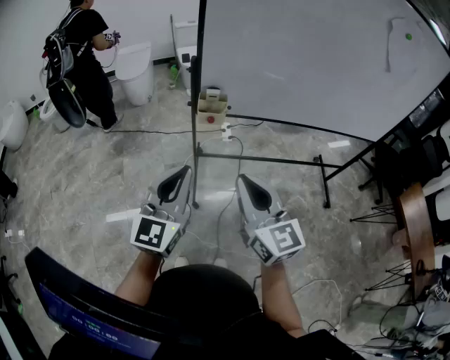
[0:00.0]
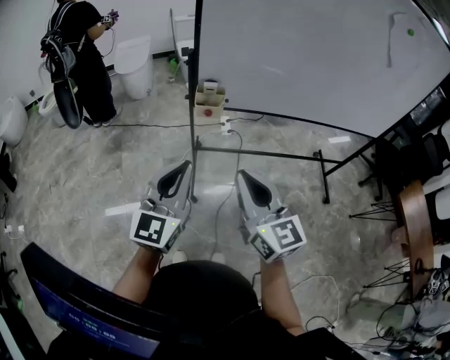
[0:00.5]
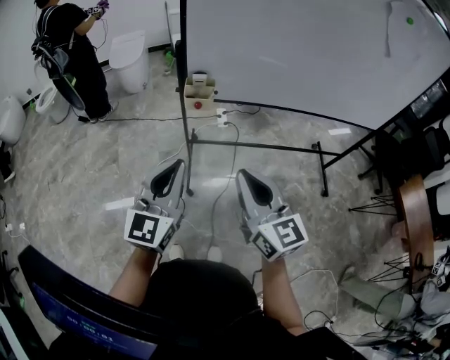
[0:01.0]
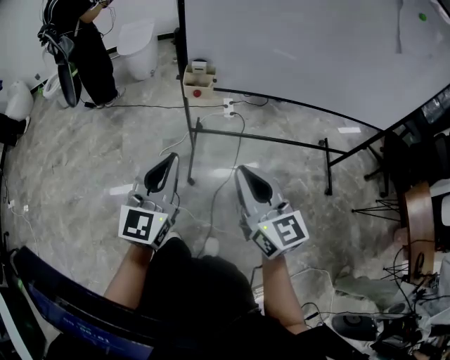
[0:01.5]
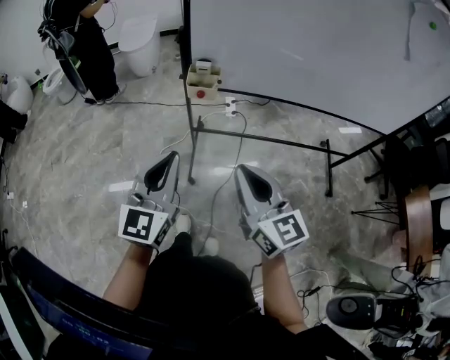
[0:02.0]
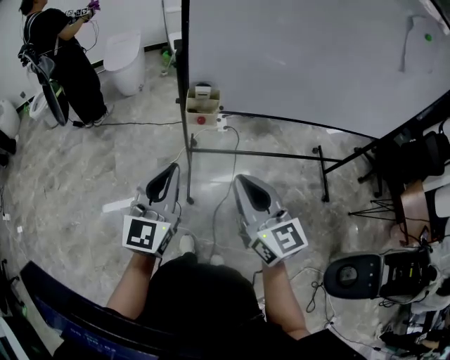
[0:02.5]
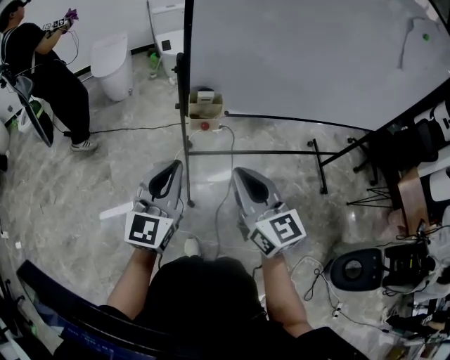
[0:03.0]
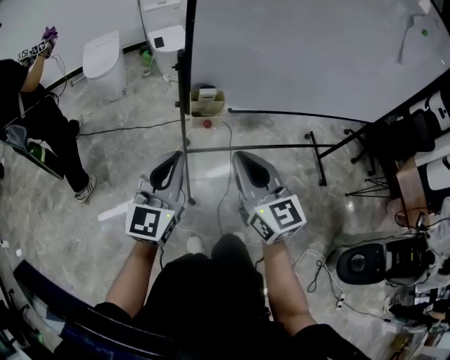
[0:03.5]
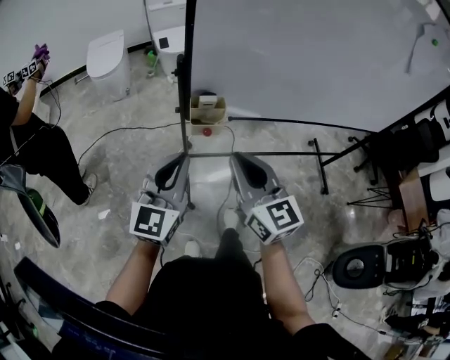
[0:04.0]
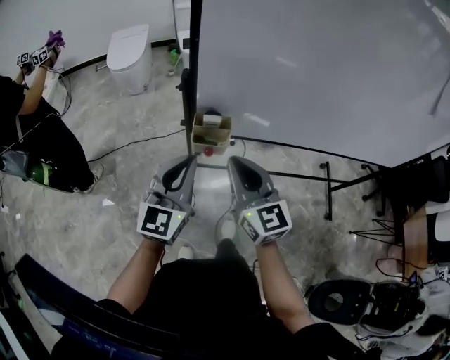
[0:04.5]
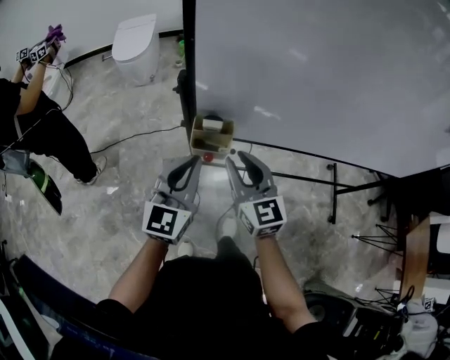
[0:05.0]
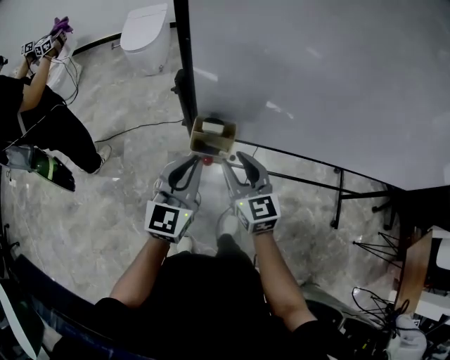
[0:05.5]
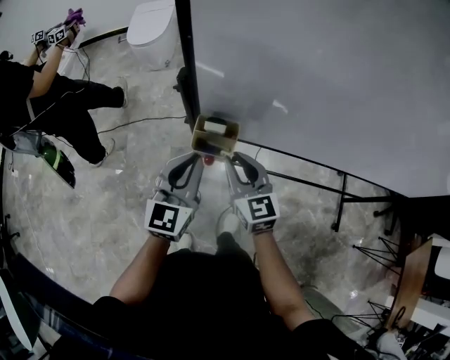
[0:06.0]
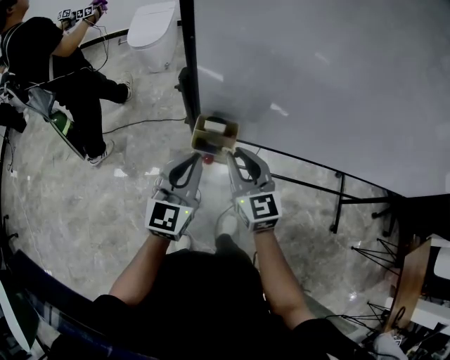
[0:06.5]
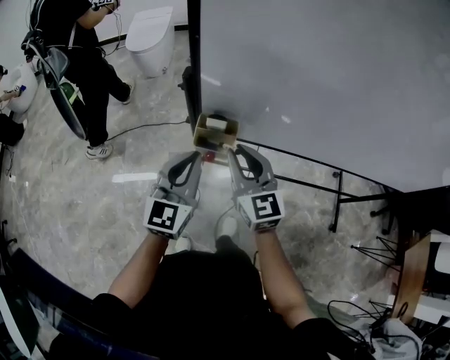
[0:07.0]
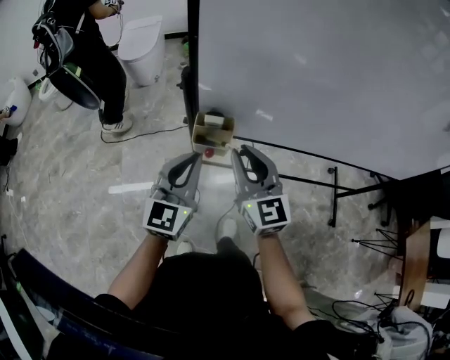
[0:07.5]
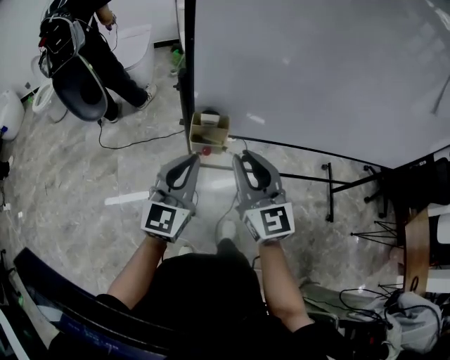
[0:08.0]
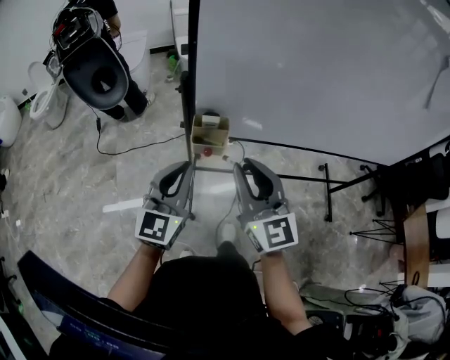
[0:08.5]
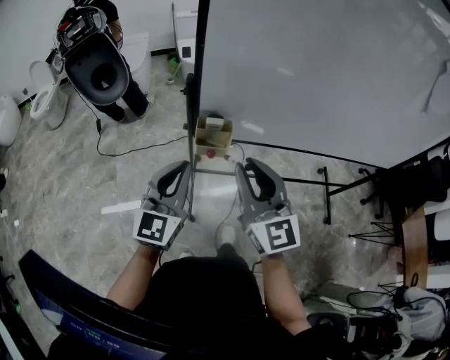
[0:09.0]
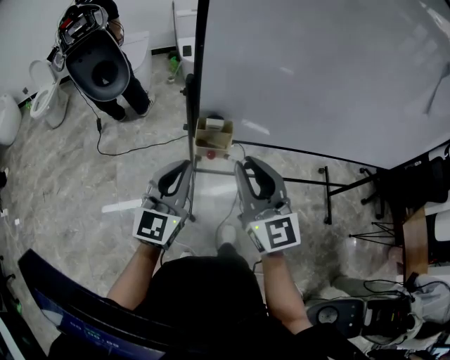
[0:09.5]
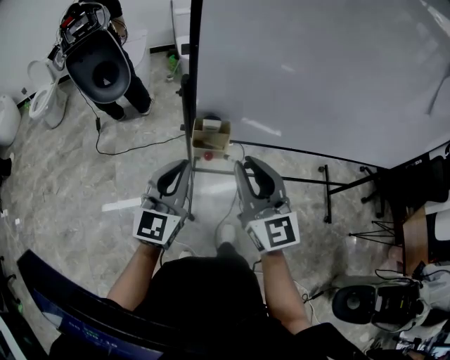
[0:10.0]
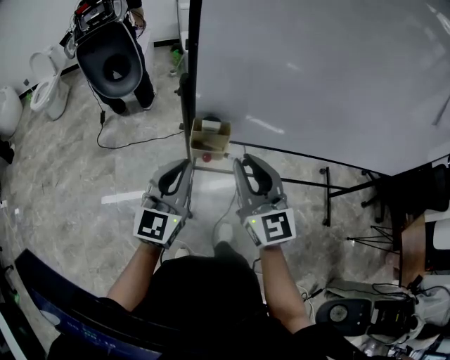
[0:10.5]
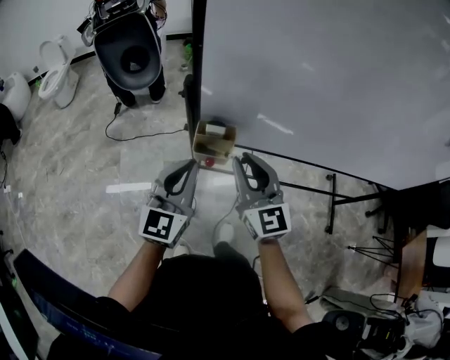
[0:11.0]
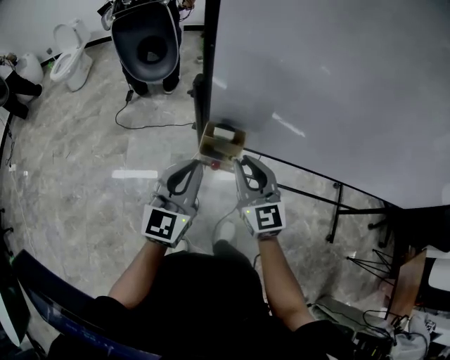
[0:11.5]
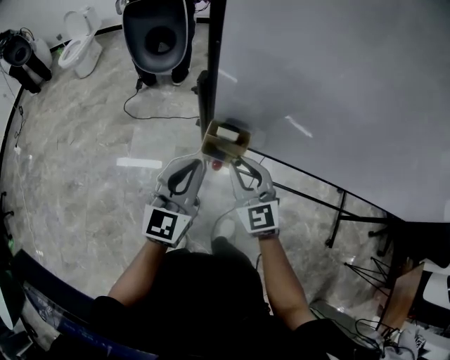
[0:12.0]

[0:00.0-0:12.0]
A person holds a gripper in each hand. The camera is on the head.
0:00.0 to 0:02.0: Both grippers travel together to the right, roughly 5 cm.
0:02.0 to 0:04.0: Both grippers travel together forward and to the left, about 20 cm.
0:04.0 to 0:06.0: The left gripper travels forward, to the right and downward by about 15 cm. The right gripper heads forward and downward, covering roughly 20 cm.
0:06.0 to 0:08.0: The right gripper heads upward and backward, covering roughly 15 cm; the left gripper moves backward and upward, some 10 cm.
0:08.0 to 0:10.0: The grippers move only a little.
0:10.0 to 0:12.0: The right gripper is displaced downward and forward by approximately 20 cm, and swivels roughly 20 degrees, while the left gripper travels forward and downward by about 10 cm.

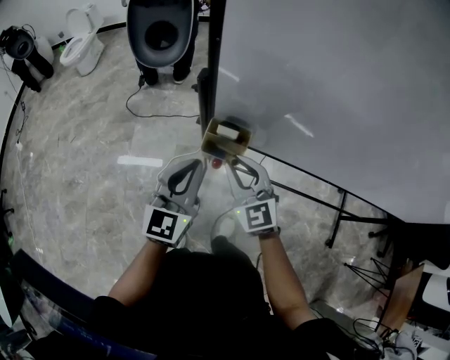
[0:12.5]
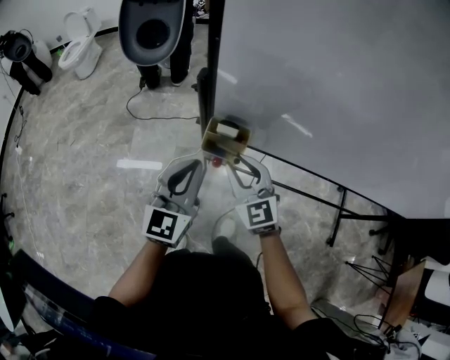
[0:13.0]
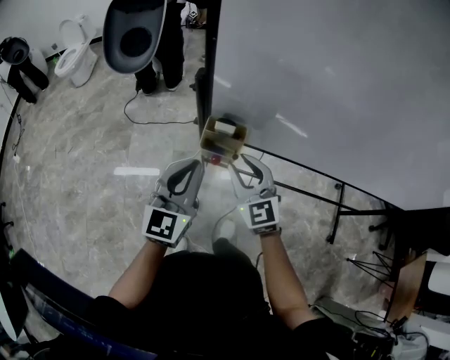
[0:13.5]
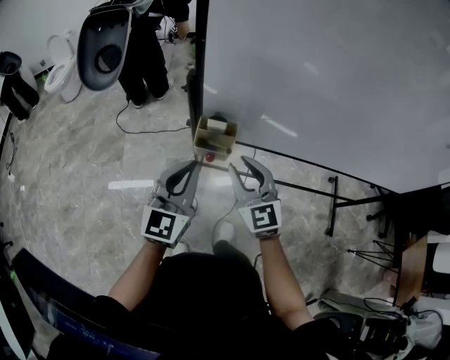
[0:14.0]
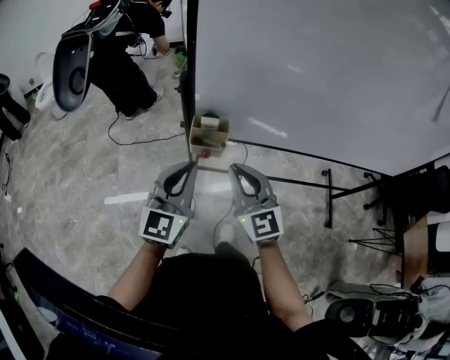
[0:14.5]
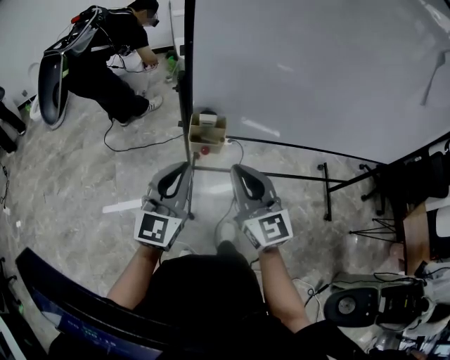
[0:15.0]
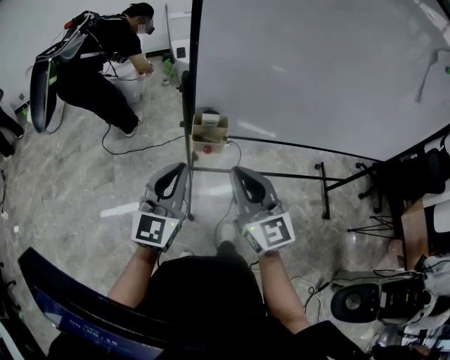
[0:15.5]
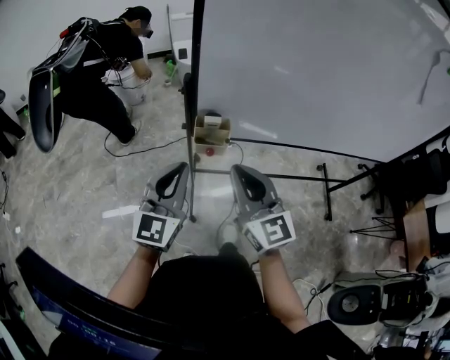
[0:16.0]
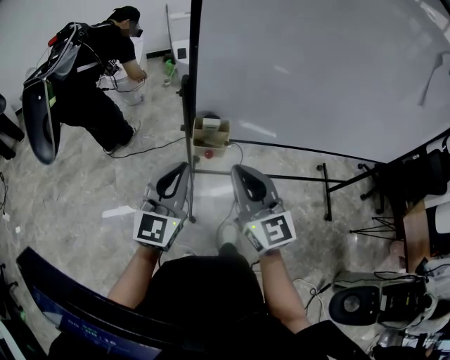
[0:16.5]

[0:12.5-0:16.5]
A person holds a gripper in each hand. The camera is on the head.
0:12.5 to 0:14.5: The right gripper heads backward and upward, covering some 10 cm. The left gripper moves backward, some 5 cm.
0:14.5 to 0:16.5: The right gripper heads upward, covering approximately 5 cm.

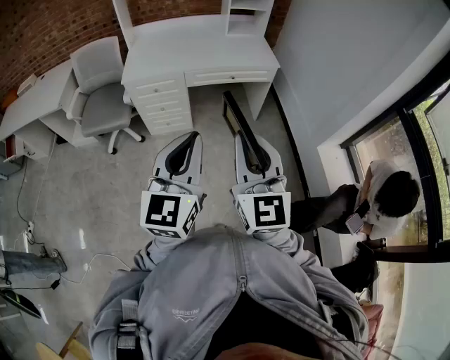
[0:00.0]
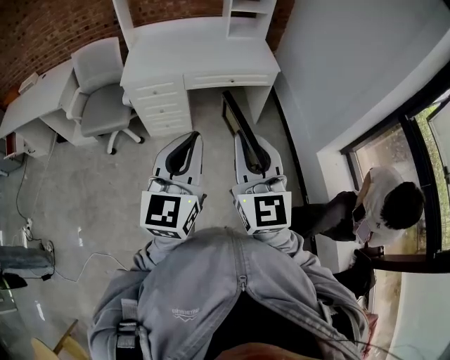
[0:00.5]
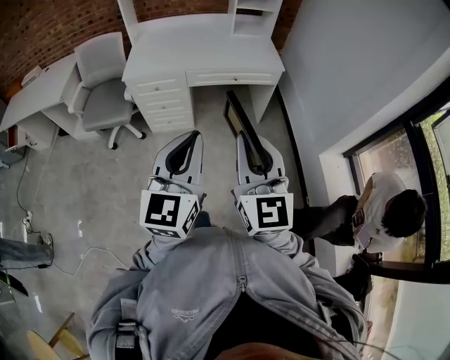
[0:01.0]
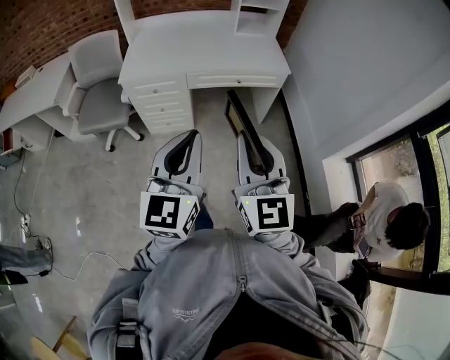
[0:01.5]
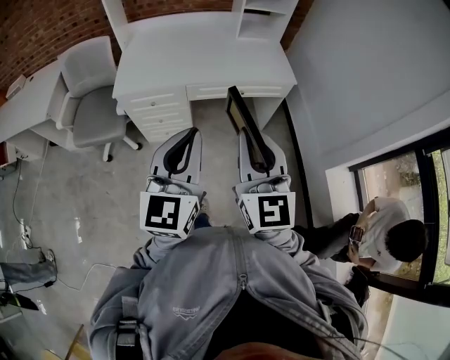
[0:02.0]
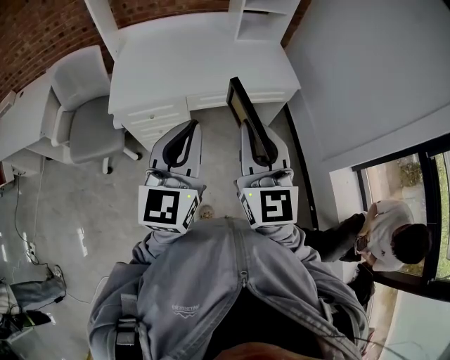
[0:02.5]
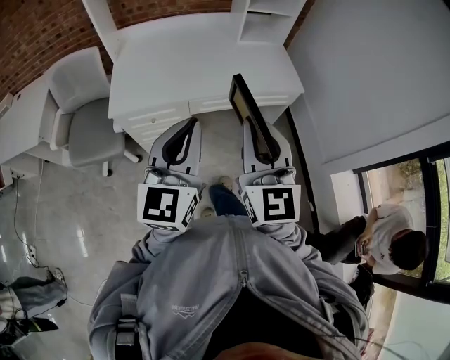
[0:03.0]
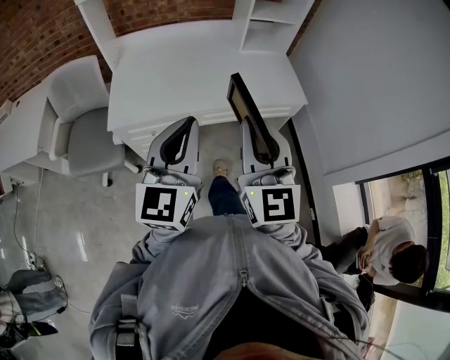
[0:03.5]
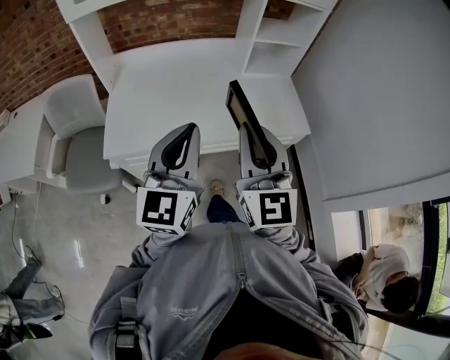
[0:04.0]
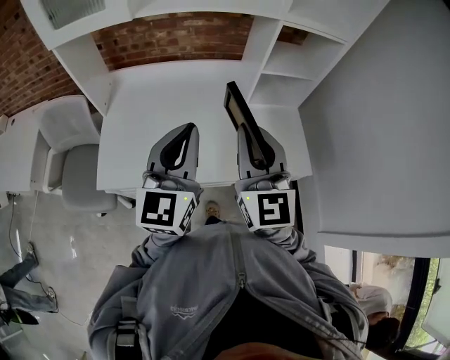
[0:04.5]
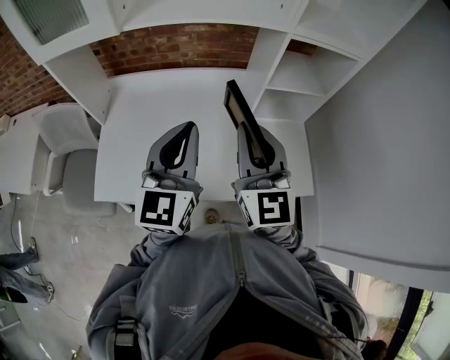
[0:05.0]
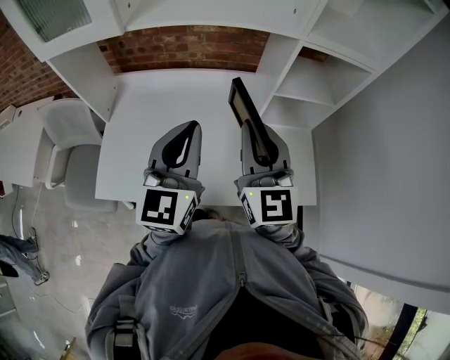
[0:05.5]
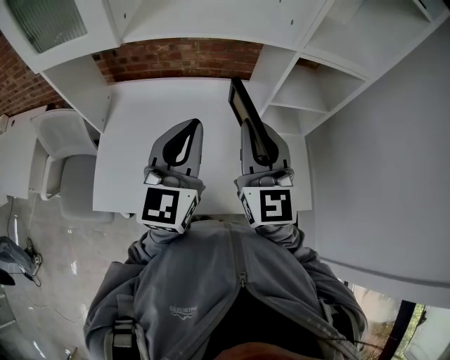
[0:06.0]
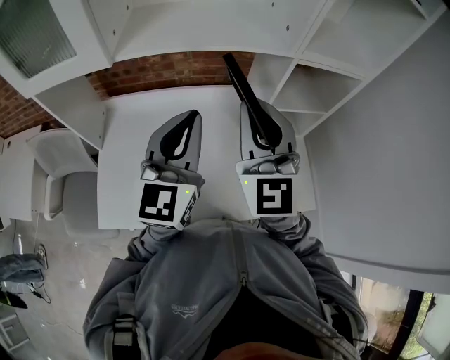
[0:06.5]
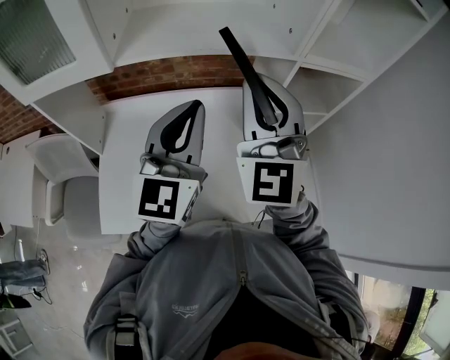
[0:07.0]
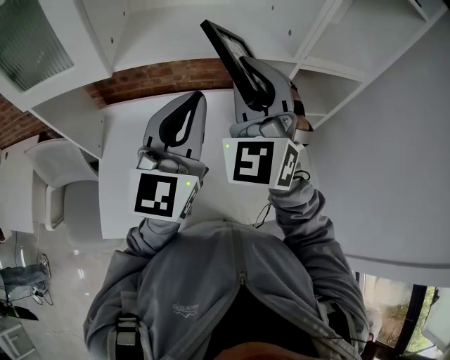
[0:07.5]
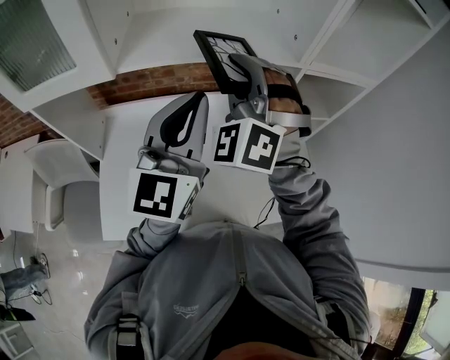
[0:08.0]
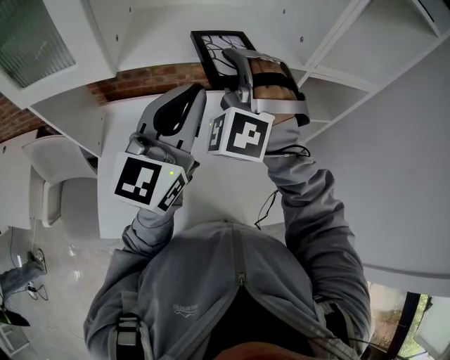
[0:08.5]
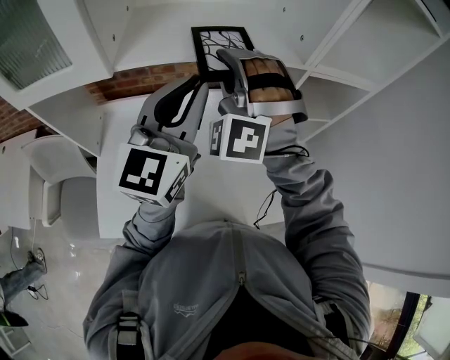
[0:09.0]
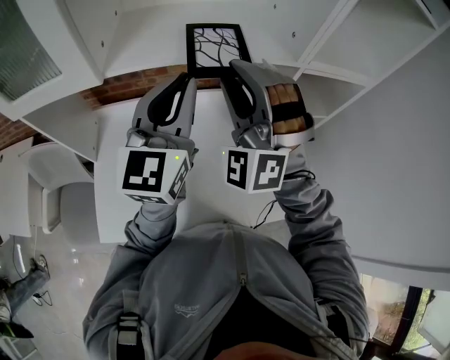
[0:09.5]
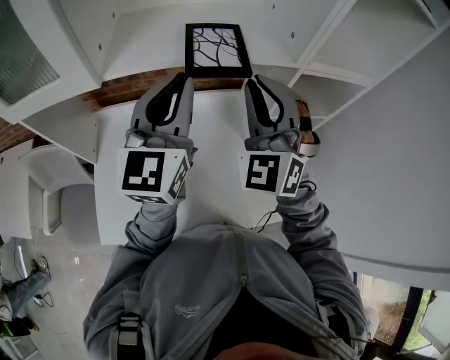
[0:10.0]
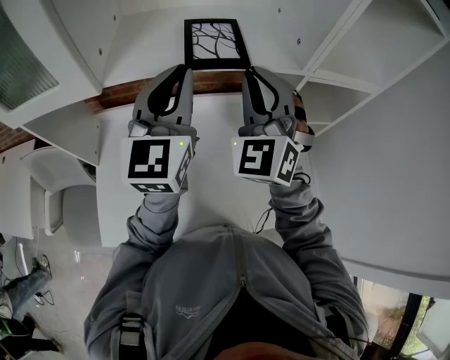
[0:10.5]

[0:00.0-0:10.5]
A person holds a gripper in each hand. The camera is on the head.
0:00.0 to 0:02.0: The two grippers go approximately 25 cm forward.
0:02.0 to 0:04.0: The two grippers go roughly 30 cm forward.
0:04.0 to 0:06.5: Both grippers travel together forward, about 35 cm.
0:06.5 to 0:08.5: The left gripper heads forward, covering approximately 5 cm. The right gripper shifts some 15 cm forward and to the left, and rolls counterclockwise, seen from behind, by approximately 60 degrees.
0:08.5 to 0:10.5: The right gripper is displaced to the right by approximately 5 cm, swivels about 30 degrees, and opens and closes again; the left gripper shifts some 10 cm forward.
